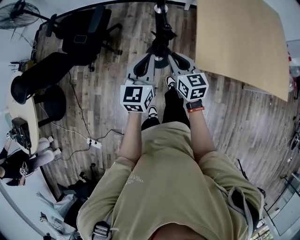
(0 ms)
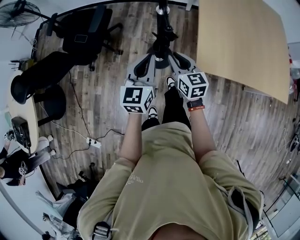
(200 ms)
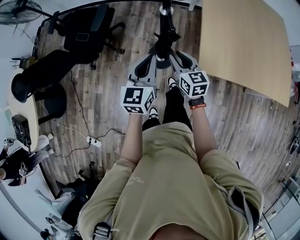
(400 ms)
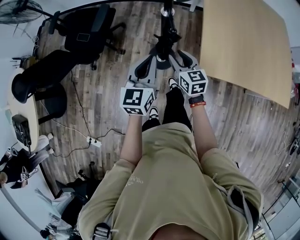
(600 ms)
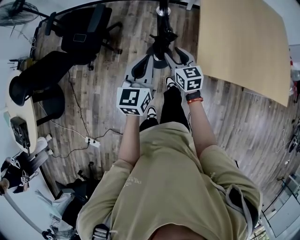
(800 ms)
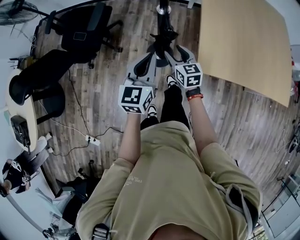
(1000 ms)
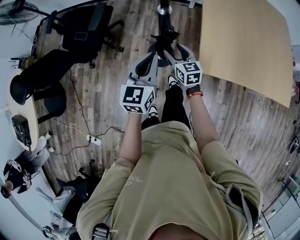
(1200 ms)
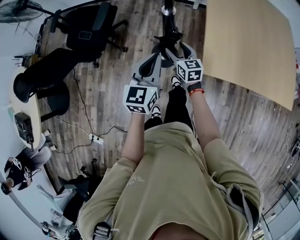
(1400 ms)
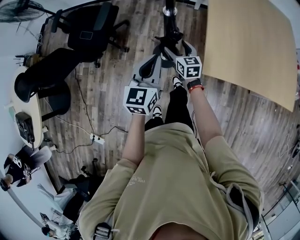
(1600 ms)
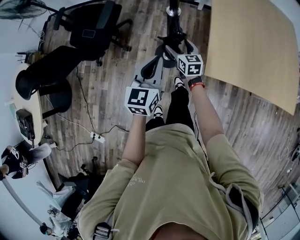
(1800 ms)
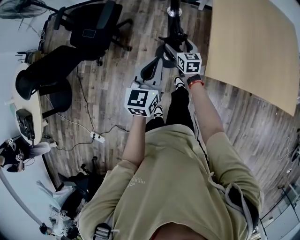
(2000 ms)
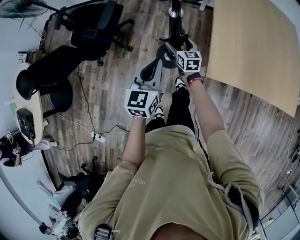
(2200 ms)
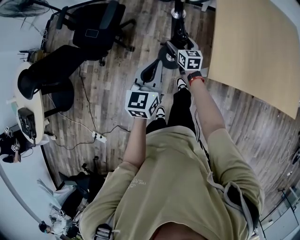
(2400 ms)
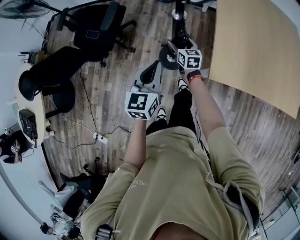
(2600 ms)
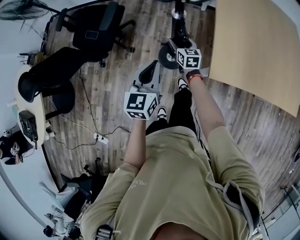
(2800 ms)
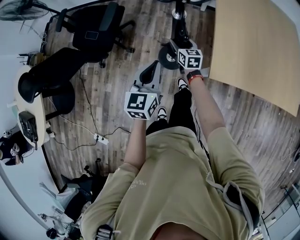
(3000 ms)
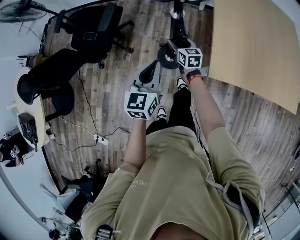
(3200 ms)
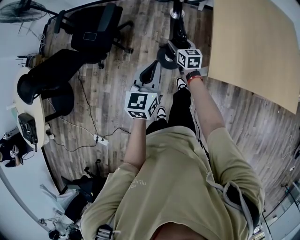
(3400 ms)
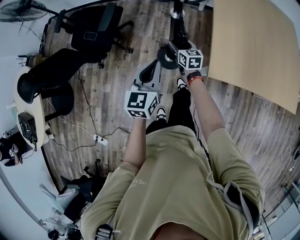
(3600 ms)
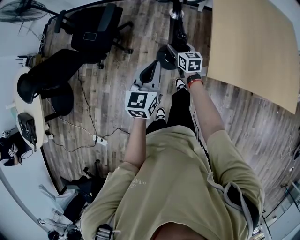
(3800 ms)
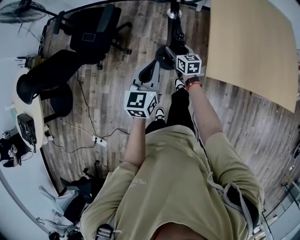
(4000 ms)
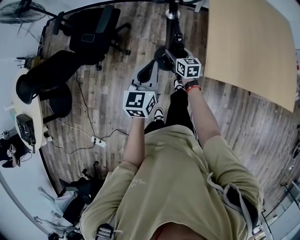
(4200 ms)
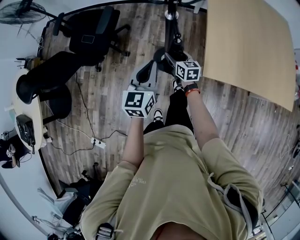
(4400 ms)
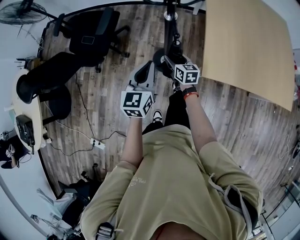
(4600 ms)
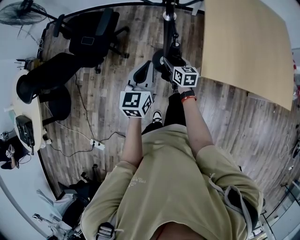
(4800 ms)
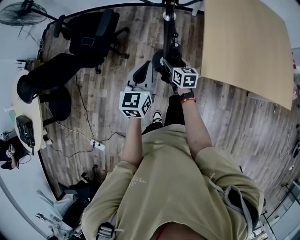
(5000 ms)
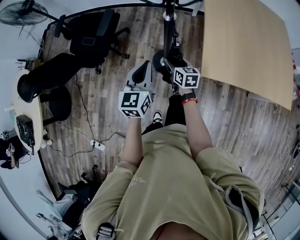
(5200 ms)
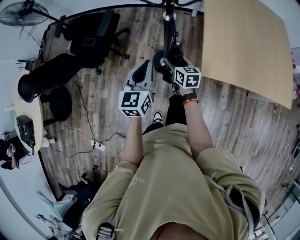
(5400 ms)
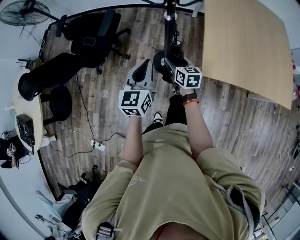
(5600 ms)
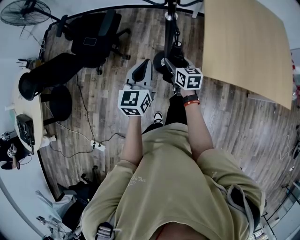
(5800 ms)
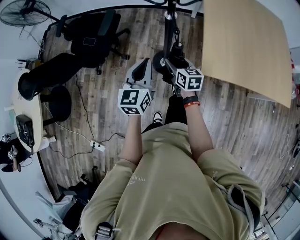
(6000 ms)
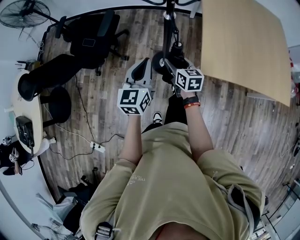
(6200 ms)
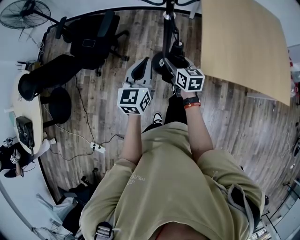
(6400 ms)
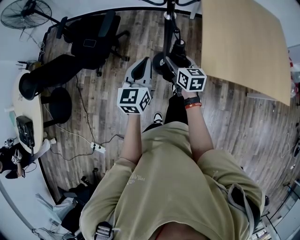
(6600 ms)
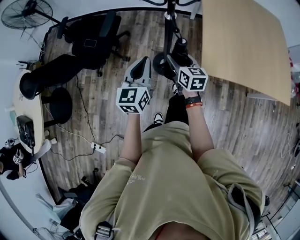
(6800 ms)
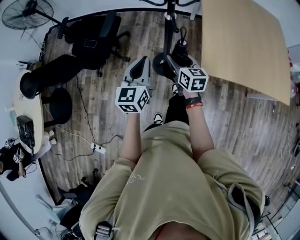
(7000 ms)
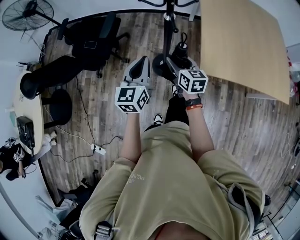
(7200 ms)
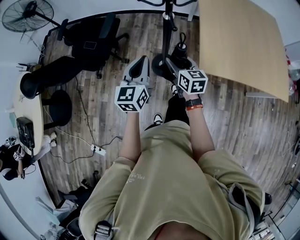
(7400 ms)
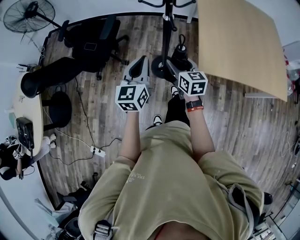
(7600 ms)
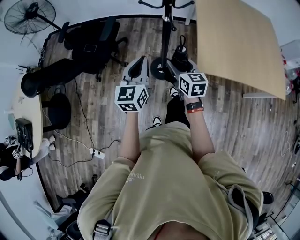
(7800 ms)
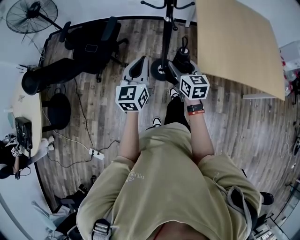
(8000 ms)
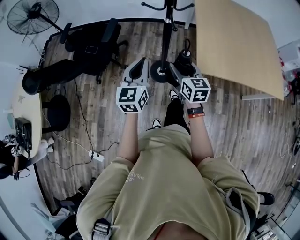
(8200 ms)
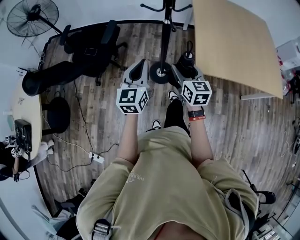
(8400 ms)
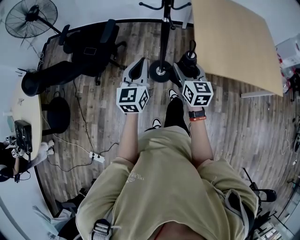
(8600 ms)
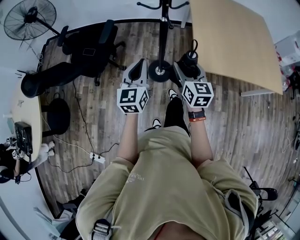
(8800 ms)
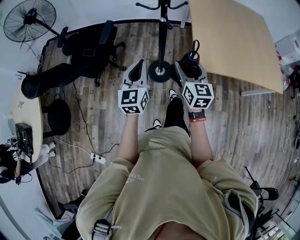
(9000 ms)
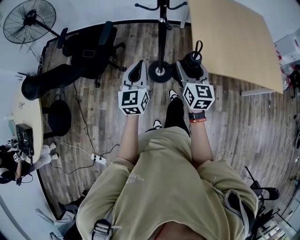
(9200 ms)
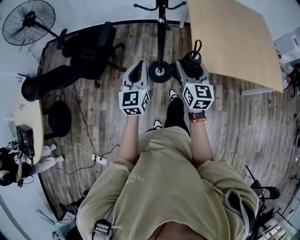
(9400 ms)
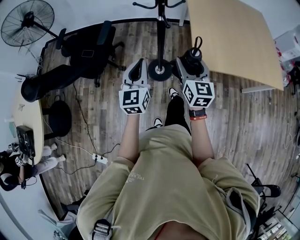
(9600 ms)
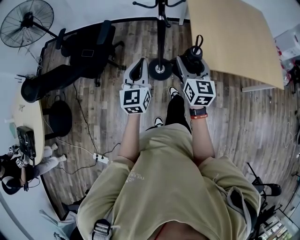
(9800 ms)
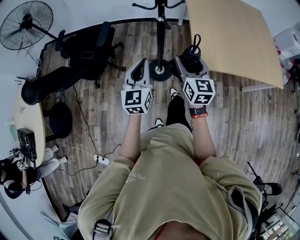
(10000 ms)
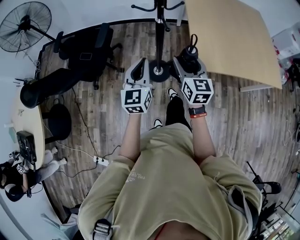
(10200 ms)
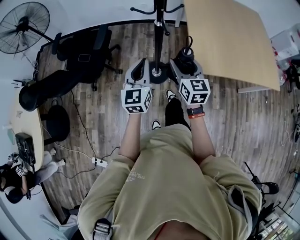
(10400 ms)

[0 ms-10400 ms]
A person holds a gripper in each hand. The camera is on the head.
0 ms to 1400 ms: The right gripper shifts approximately 15 cm downward and forward, and opens up.
1400 ms to 3000 ms: The right gripper goes approximately 10 cm forward.
3000 ms to 4400 ms: The right gripper shifts approximately 10 cm backward.
4400 ms to 6000 ms: The left gripper shifts by roughly 5 cm. Meanwhile the right gripper heads upward and backward, covering about 10 cm.
6000 ms to 7400 ms: The right gripper goes approximately 10 cm upward.
7400 ms to 9000 ms: The left gripper travels backward by roughly 5 cm. The right gripper travels backward and upward by approximately 15 cm, and swivels approximately 20 degrees.
9000 ms to 10400 ms: Both grippers travel together forward, roughly 5 cm.

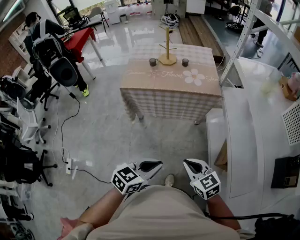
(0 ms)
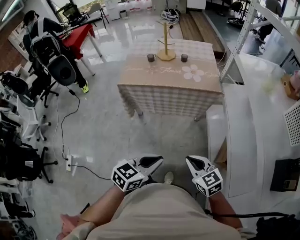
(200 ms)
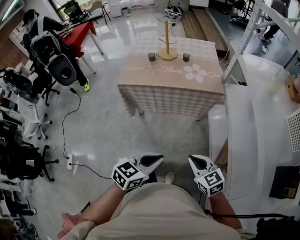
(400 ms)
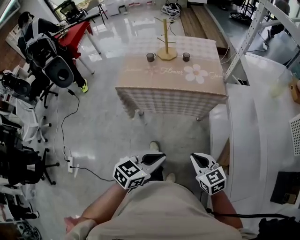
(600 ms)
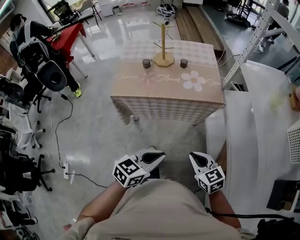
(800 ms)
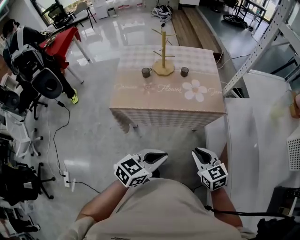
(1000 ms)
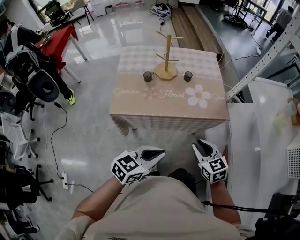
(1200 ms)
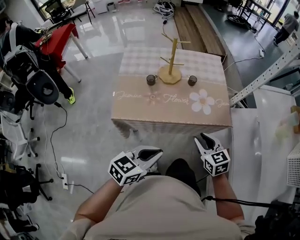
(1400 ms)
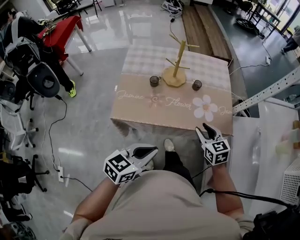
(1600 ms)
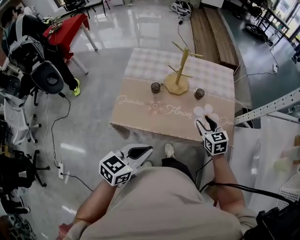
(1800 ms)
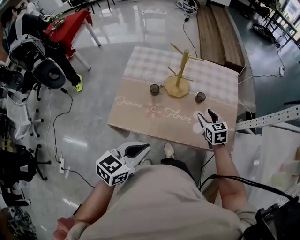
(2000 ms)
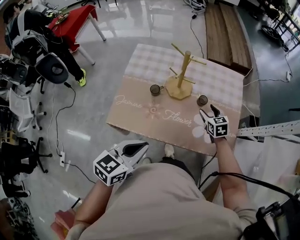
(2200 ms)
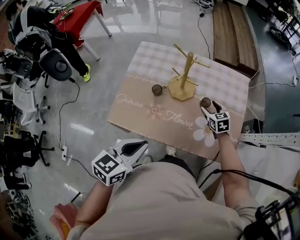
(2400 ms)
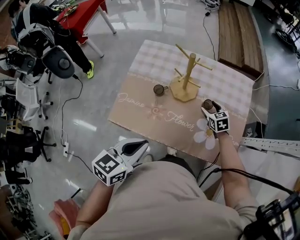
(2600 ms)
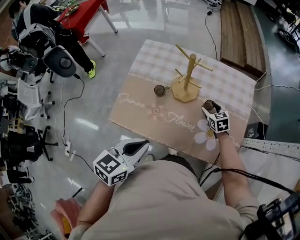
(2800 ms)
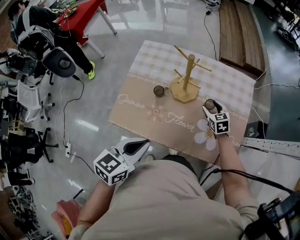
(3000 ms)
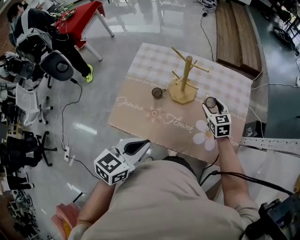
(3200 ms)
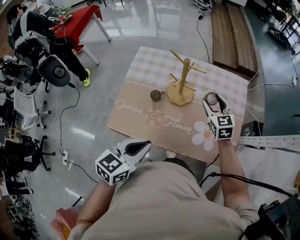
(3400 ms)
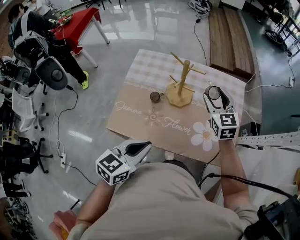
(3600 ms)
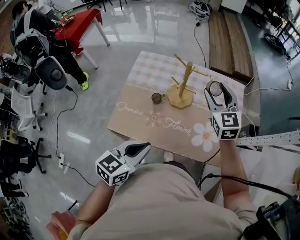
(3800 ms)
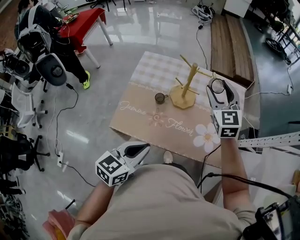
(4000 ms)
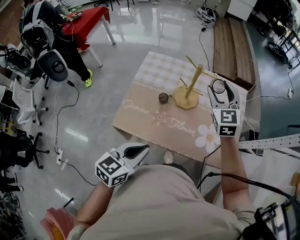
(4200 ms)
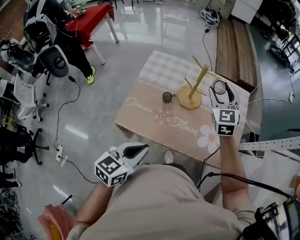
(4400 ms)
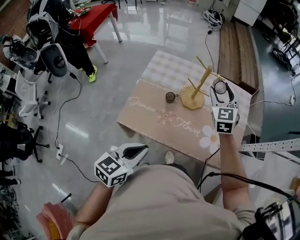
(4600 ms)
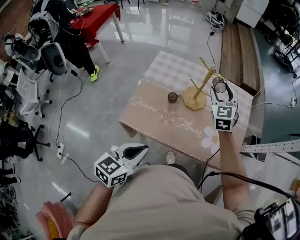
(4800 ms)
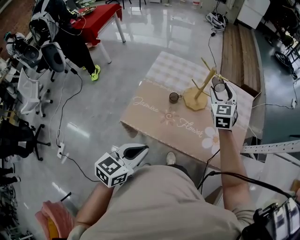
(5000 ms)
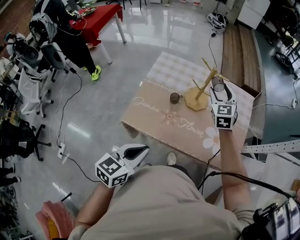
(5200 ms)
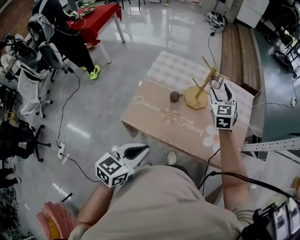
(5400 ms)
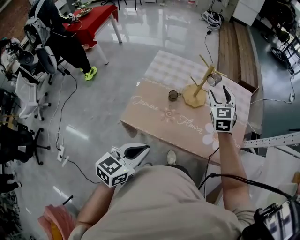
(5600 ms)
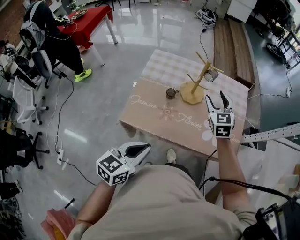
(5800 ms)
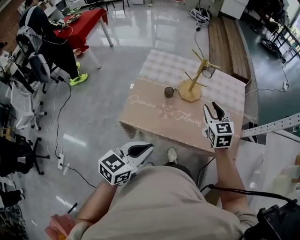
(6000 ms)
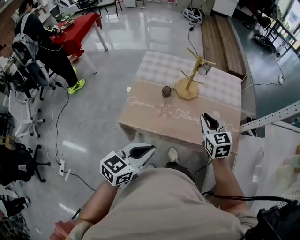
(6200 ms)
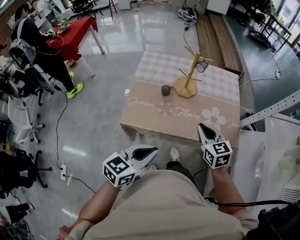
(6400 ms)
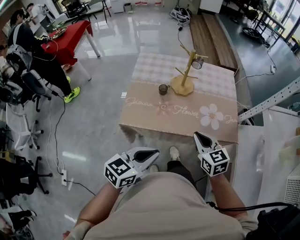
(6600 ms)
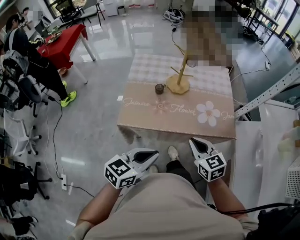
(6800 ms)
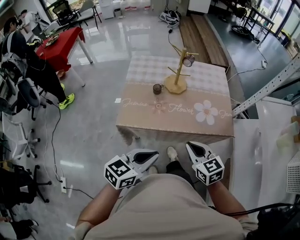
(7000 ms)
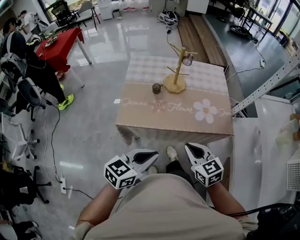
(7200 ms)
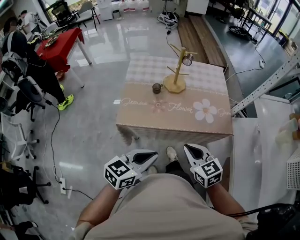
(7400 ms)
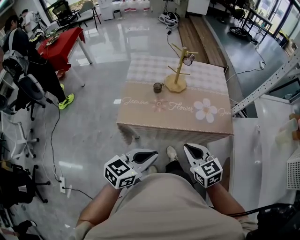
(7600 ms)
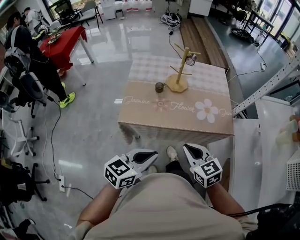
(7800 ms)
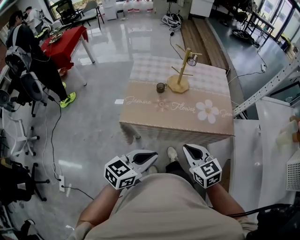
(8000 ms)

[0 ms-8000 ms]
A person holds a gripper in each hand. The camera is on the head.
0 ms to 1600 ms: The pair of grippers is taken forward, roughly 50 cm. The right gripper opens.
1600 ms to 3200 ms: The left gripper heads forward, covering some 15 cm, and turns by approximately 20 degrees; the right gripper heads forward, covering some 30 cm, and opens.
3200 ms to 4800 ms: The right gripper goes some 20 cm upward and to the left, and turns by roughly 30 degrees, while the left gripper heads backward and to the left, covering roughly 10 cm.
4800 ms to 6400 ms: The right gripper moves backward, about 25 cm, changes its angle by about 30 degrees, and closes its fingers, while the left gripper travels backward by roughly 5 cm.
6400 ms to 8000 ms: The left gripper shifts approximately 10 cm backward, while the right gripper heads backward, covering roughly 20 cm.

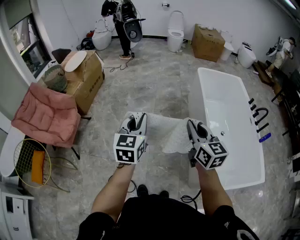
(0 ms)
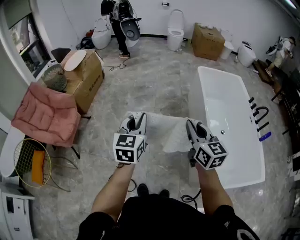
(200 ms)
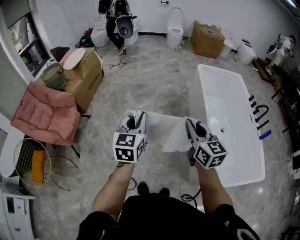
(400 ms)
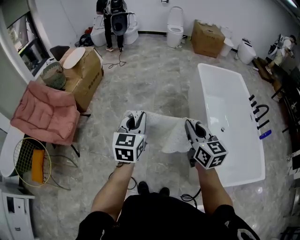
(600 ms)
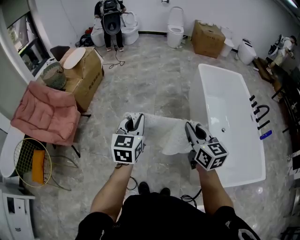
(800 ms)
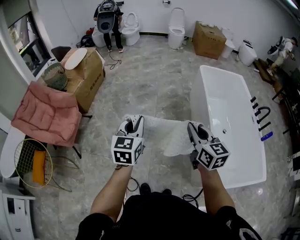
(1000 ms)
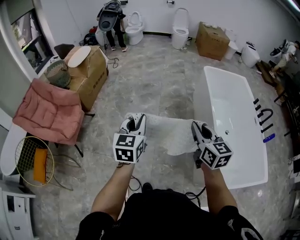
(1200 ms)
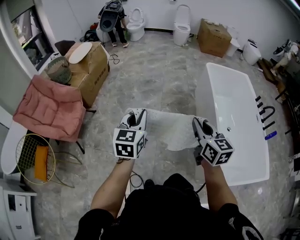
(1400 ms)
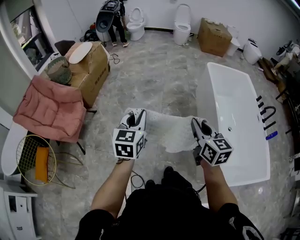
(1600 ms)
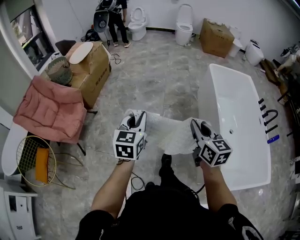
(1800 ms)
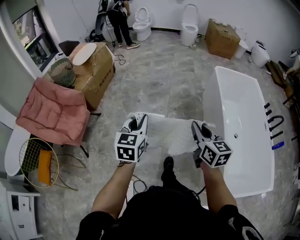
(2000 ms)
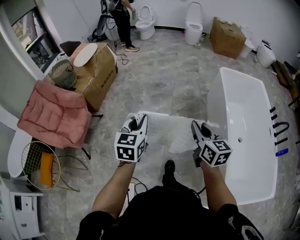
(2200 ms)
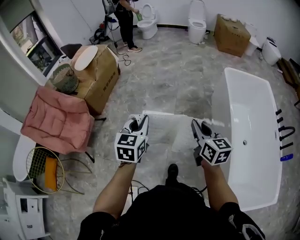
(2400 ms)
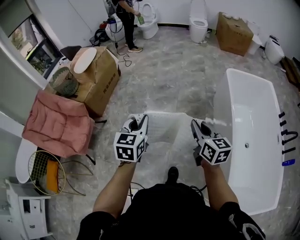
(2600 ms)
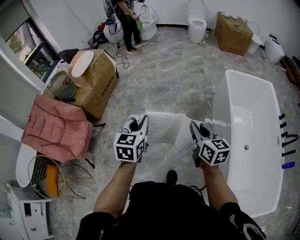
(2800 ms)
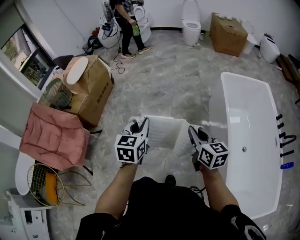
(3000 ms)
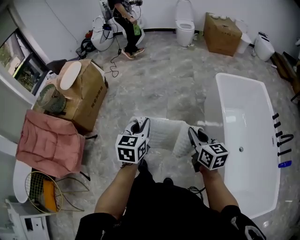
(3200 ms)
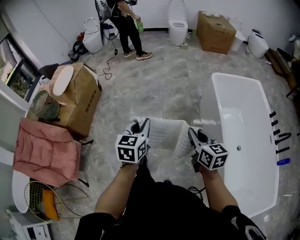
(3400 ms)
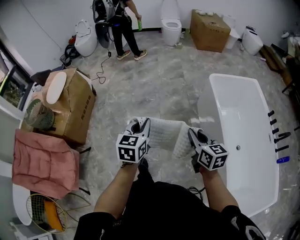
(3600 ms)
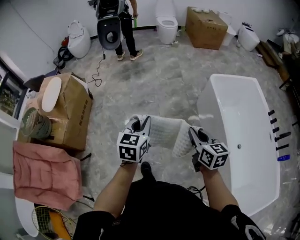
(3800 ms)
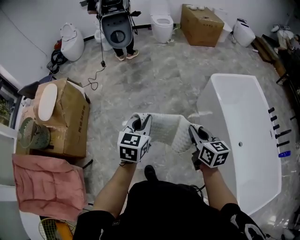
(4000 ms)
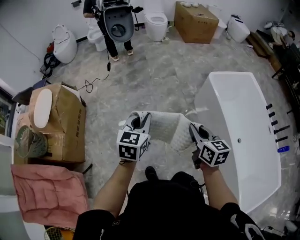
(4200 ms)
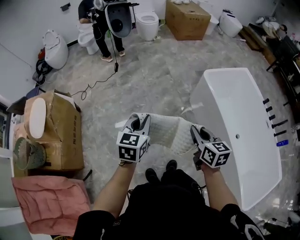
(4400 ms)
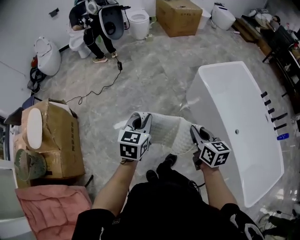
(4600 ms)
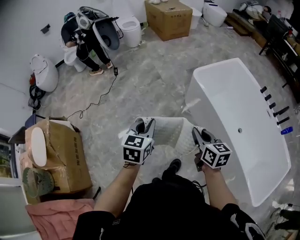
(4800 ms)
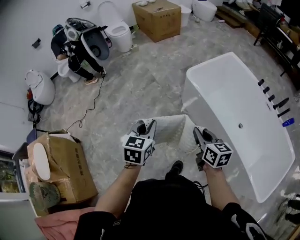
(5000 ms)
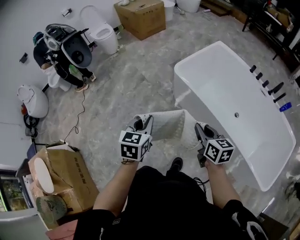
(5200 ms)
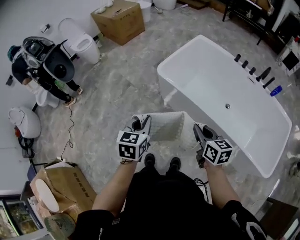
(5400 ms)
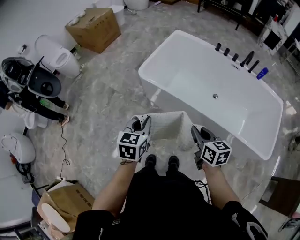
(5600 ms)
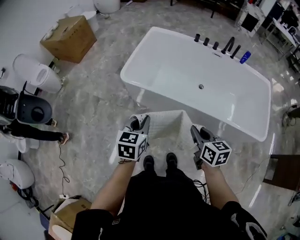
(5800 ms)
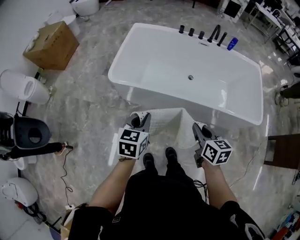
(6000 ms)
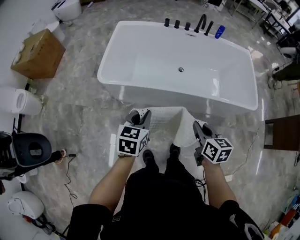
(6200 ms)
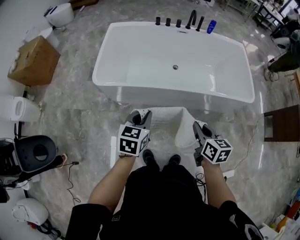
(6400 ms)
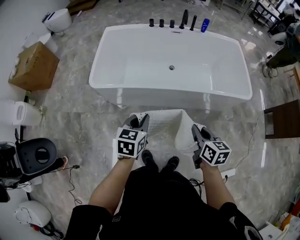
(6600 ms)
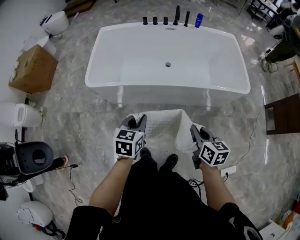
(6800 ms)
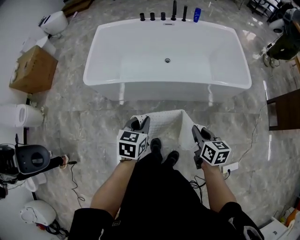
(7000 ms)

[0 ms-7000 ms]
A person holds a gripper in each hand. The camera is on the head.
0 ms to 1400 ms: The grippers both shift to the left by about 10 cm.
1400 ms to 2800 ms: The two grippers go roughly 30 cm forward.
2800 ms to 4200 ms: The grippers both shift forward by about 35 cm. The left gripper turns by some 20 degrees. Meanwhile the right gripper swivels some 20 degrees.
4200 ms to 5600 ms: The left gripper moves approximately 40 cm, and swivels about 50 degrees. The right gripper changes place by approximately 30 cm, and changes its angle by about 50 degrees.
5600 ms to 7000 ms: The right gripper shifts by about 25 cm, and rotates roughly 40 degrees; the left gripper changes place by roughly 25 cm, and swivels about 30 degrees.
